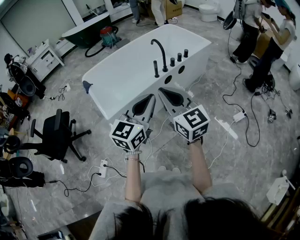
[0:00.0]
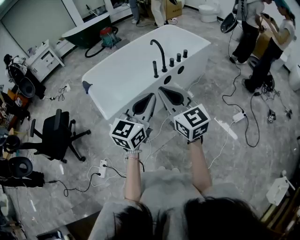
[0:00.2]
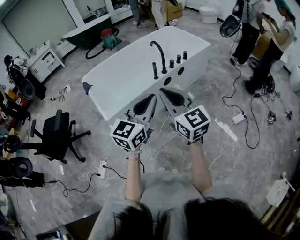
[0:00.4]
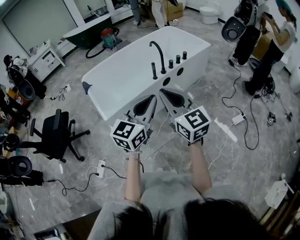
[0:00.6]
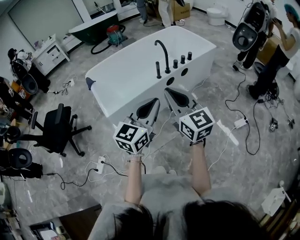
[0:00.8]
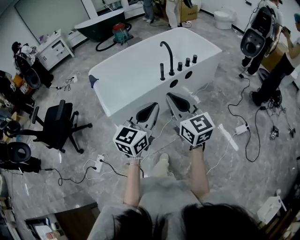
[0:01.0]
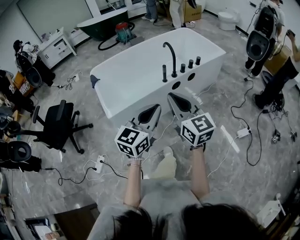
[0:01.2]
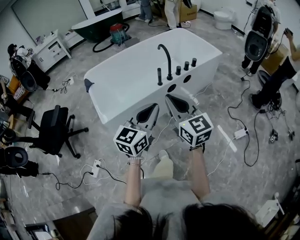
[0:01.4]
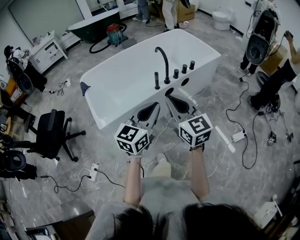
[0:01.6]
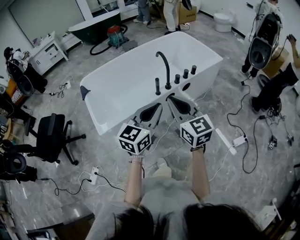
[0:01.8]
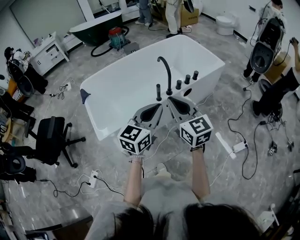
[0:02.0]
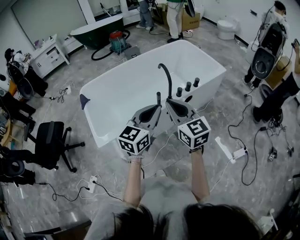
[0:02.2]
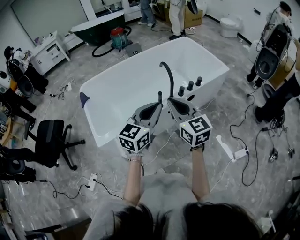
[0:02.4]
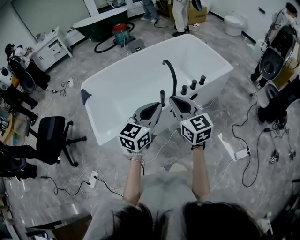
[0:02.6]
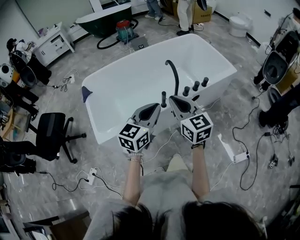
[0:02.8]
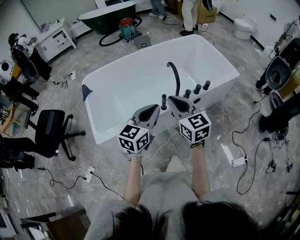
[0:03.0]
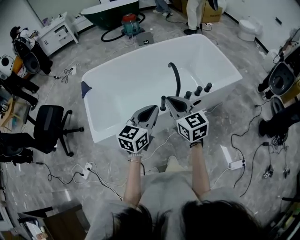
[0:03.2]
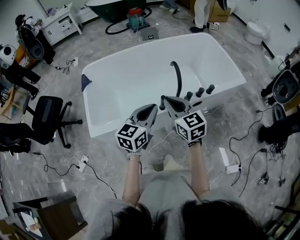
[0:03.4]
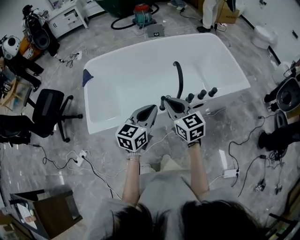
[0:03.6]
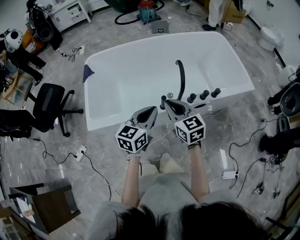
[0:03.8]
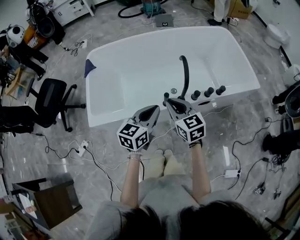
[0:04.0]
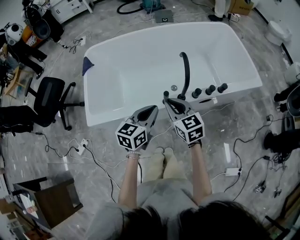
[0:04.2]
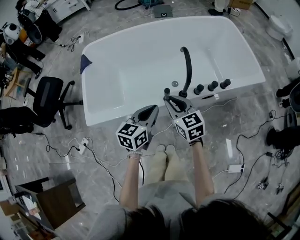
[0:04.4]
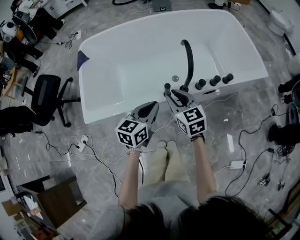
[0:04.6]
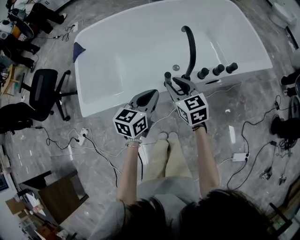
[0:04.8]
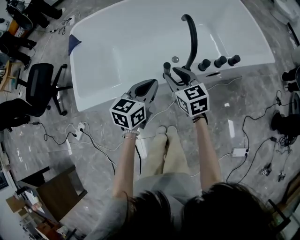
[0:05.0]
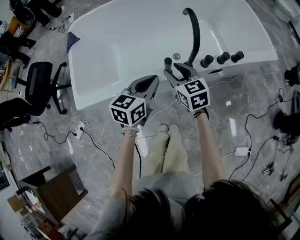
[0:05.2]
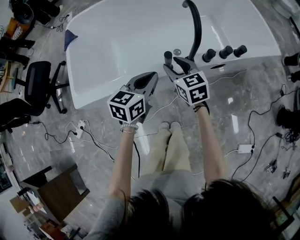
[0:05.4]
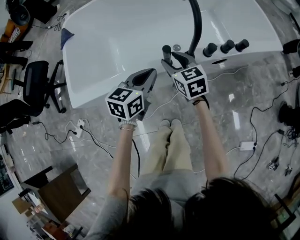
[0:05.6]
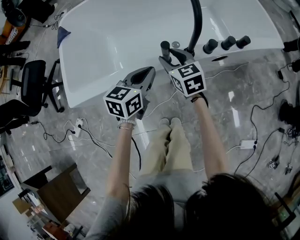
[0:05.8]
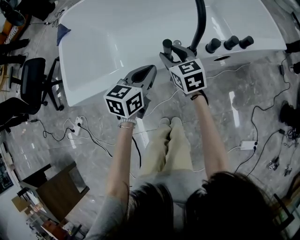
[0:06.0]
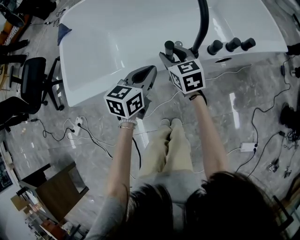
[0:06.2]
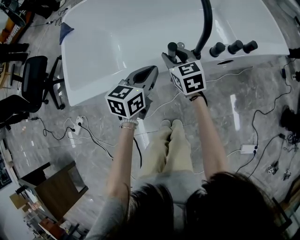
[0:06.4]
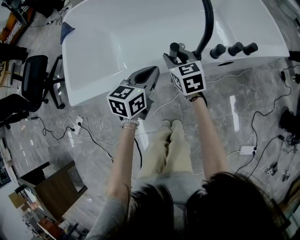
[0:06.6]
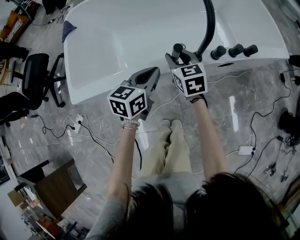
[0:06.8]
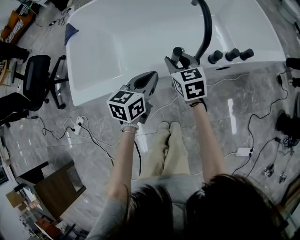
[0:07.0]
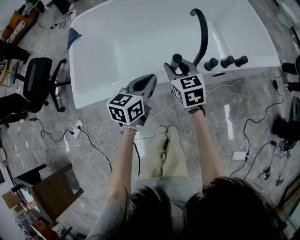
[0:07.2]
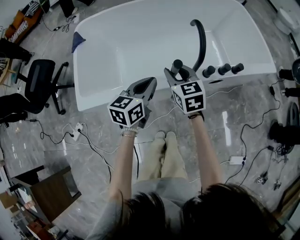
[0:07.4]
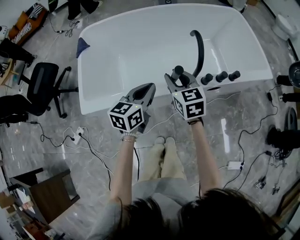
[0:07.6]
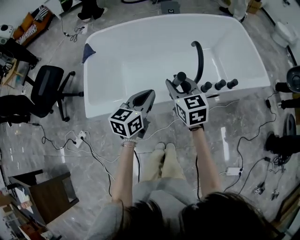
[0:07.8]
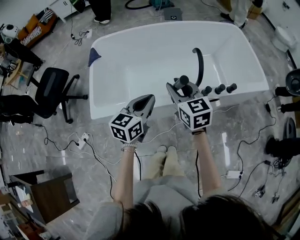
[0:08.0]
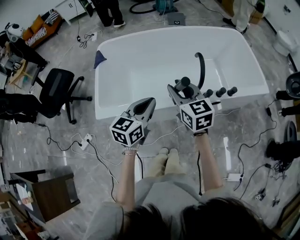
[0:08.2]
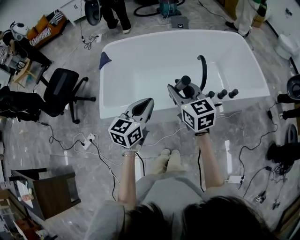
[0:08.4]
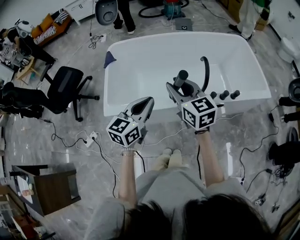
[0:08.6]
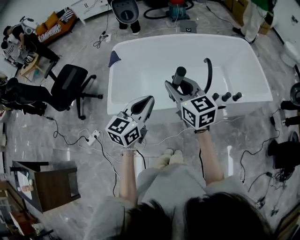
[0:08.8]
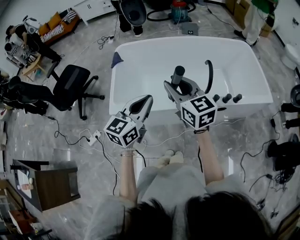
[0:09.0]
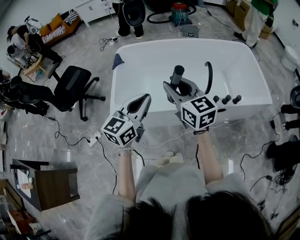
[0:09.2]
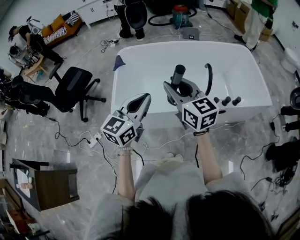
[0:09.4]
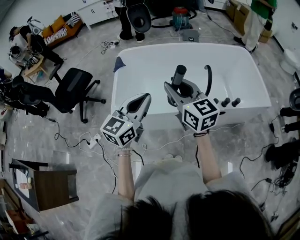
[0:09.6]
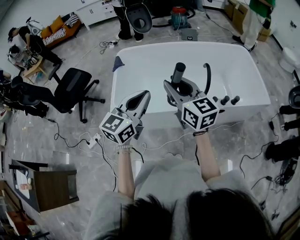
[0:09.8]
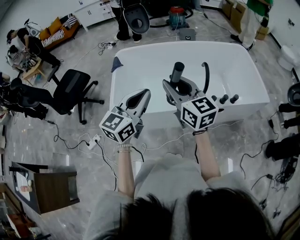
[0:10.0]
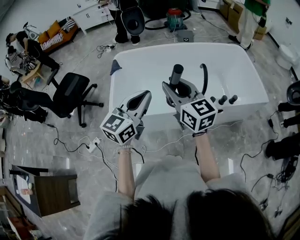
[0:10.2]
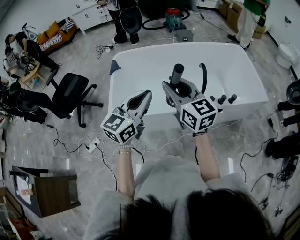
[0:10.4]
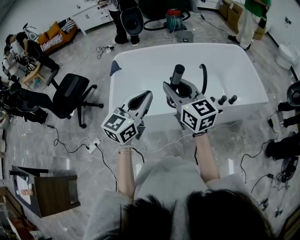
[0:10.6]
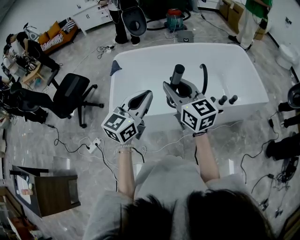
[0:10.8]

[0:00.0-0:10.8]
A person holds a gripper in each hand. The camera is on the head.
0:00.0 to 0:01.6: The left gripper travels forward and downward by roughly 15 cm, while the right gripper goes about 15 cm forward and to the right.
0:01.6 to 0:03.0: The two grippers go roughly 25 cm forward.
0:03.0 to 0:04.6: The two grippers go roughly 20 cm downward and forward. The left gripper rotates some 20 degrees; the right gripper rotates approximately 20 degrees.
0:04.6 to 0:06.2: The left gripper shifts roughly 15 cm downward. Meanwhile the right gripper moves downward and forward, some 15 cm, and opens up.
0:06.2 to 0:07.8: Both grippers travel together upward, some 20 cm.
0:07.8 to 0:09.2: The left gripper shifts about 25 cm upward, backward and to the left; the right gripper shifts roughly 25 cm upward, to the left and backward, and swivels roughly 20 degrees.
0:09.2 to 0:10.8: There are only small adjustments of the grippers.

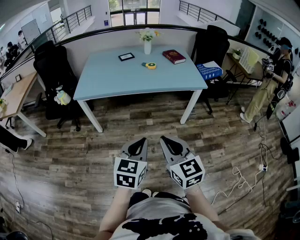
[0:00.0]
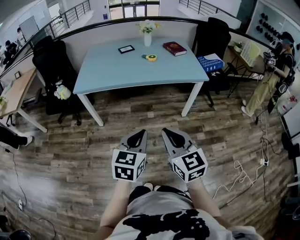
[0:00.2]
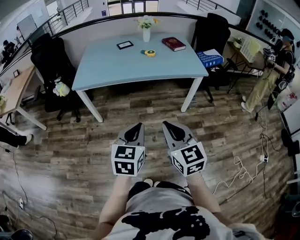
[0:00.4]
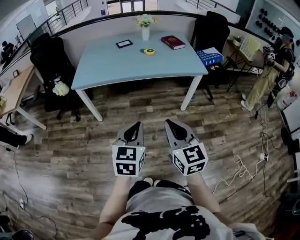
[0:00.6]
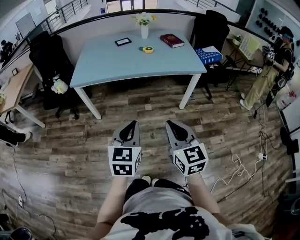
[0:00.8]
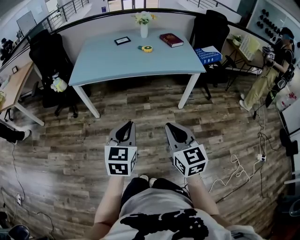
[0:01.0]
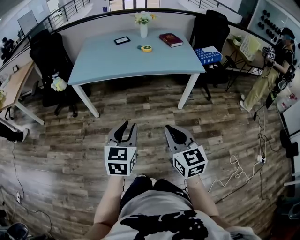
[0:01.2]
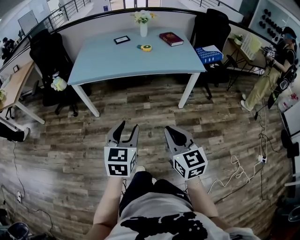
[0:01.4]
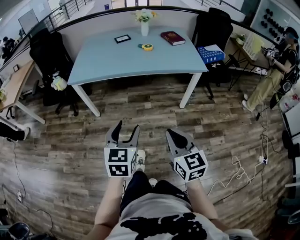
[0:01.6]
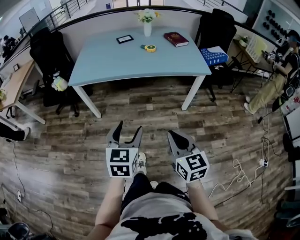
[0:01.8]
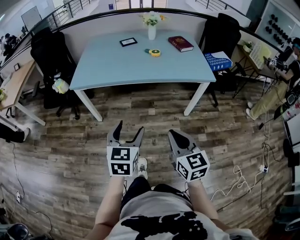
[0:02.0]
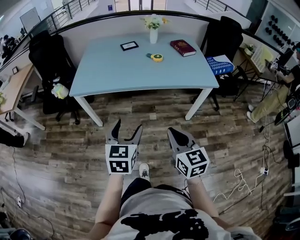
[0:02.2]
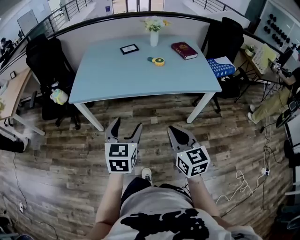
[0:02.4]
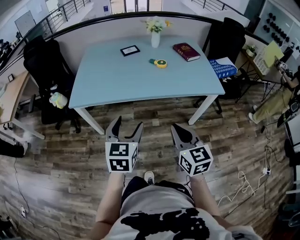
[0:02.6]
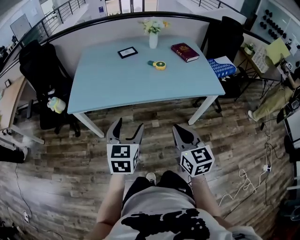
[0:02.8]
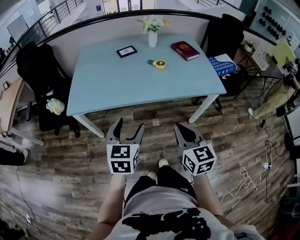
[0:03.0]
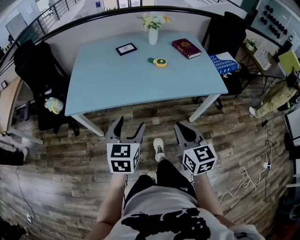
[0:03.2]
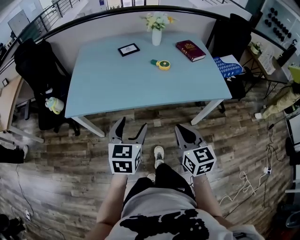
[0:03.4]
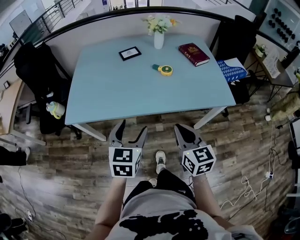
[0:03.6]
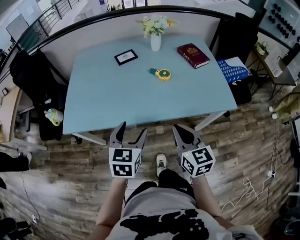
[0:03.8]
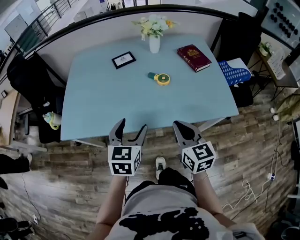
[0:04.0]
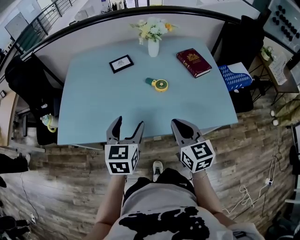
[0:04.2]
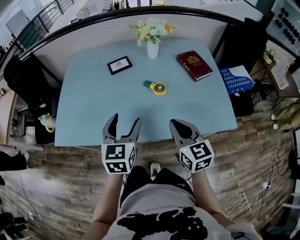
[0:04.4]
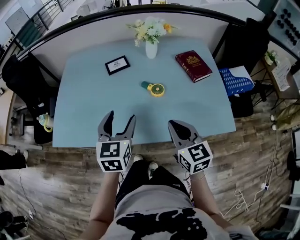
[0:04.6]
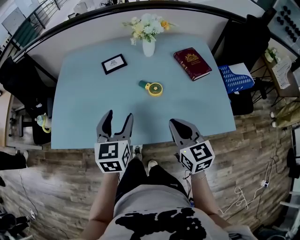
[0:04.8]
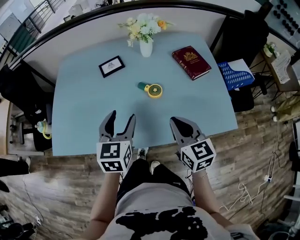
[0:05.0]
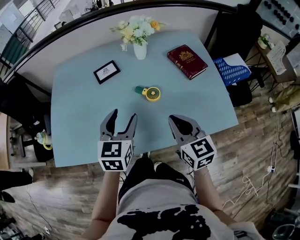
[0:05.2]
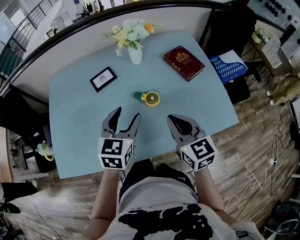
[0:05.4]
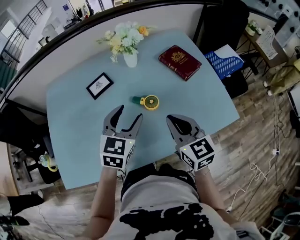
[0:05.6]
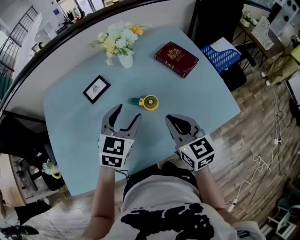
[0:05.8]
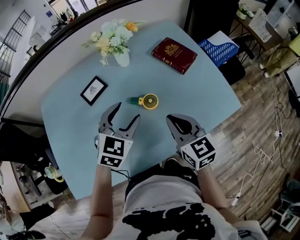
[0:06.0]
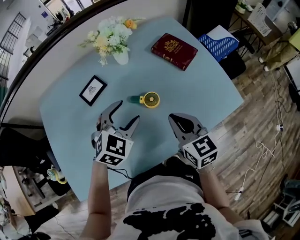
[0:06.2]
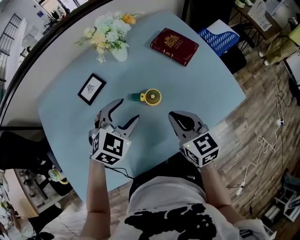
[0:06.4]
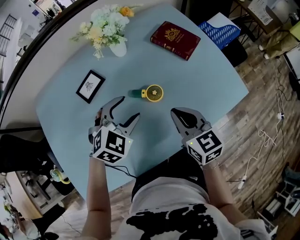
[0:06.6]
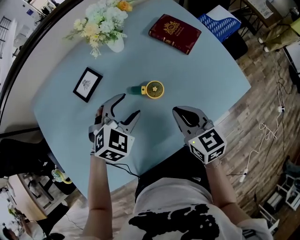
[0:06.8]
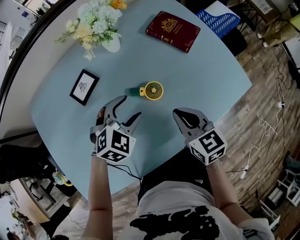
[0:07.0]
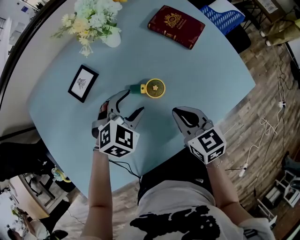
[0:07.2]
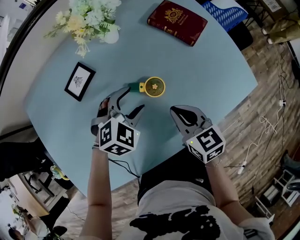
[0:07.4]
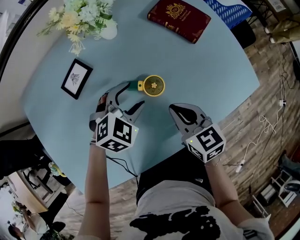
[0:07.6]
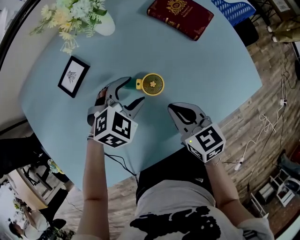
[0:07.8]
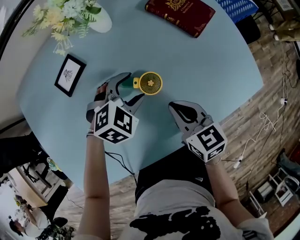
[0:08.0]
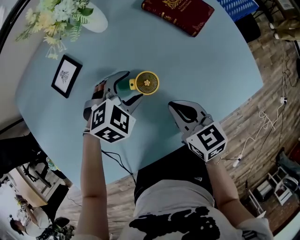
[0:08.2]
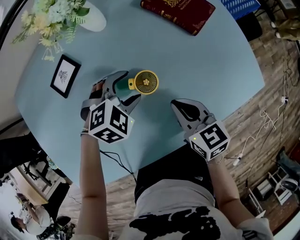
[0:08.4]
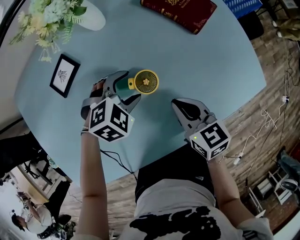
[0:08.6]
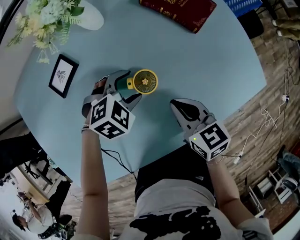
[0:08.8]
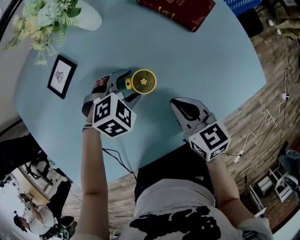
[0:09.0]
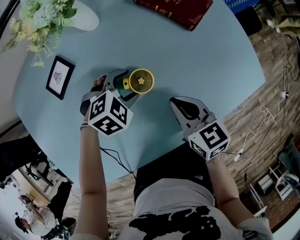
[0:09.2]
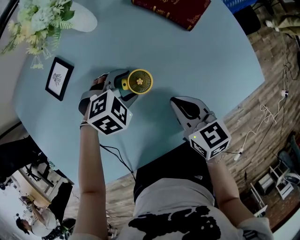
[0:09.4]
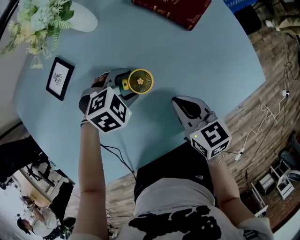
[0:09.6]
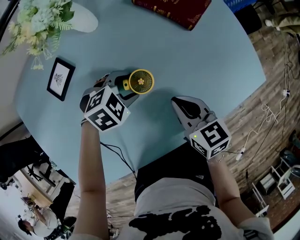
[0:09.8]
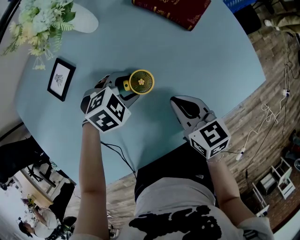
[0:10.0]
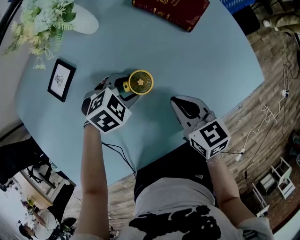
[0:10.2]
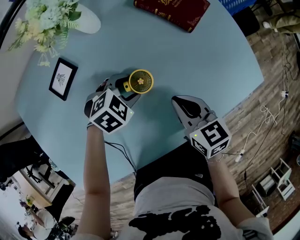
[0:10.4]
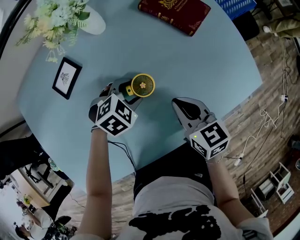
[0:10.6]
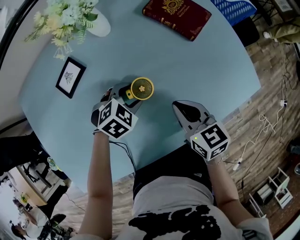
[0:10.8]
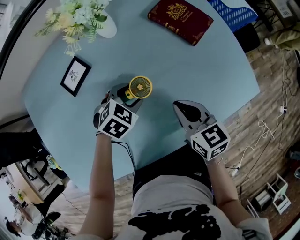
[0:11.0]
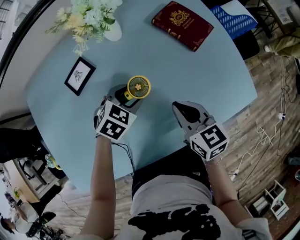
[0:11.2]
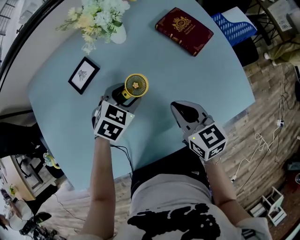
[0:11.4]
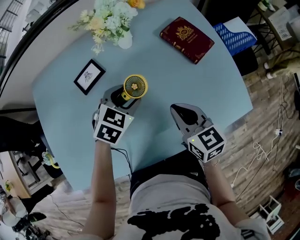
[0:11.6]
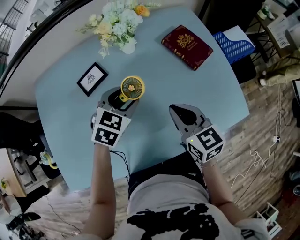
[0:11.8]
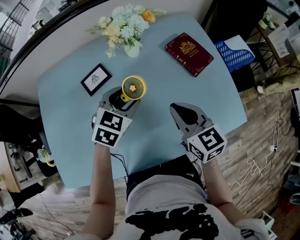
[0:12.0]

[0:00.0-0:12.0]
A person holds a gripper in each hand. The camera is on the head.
0:00.0 to 0:01.6: The left gripper opens its fingers, while the right gripper is displaced to the right and downward by some 10 cm.
0:01.6 to 0:03.0: The grippers both shift forward by about 30 cm.
0:03.0 to 0:04.4: Both grippers travel together forward, some 30 cm.
0:04.4 to 0:06.0: The right gripper ends up about 10 cm from where it was. Meanwhile the left gripper ends up some 20 cm from where it was, and changes its angle by roughly 50 degrees.
0:06.0 to 0:07.6: The two grippers go some 10 cm downward. The left gripper turns by some 30 degrees.
0:07.6 to 0:09.0: The left gripper heads downward, covering approximately 5 cm.
0:09.0 to 0:10.4: The grippers move only a little.
0:10.4 to 0:12.0: The two grippers go roughly 15 cm upward. The left gripper rotates roughly 40 degrees. Meanwhile the right gripper turns by about 20 degrees.

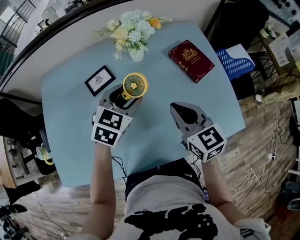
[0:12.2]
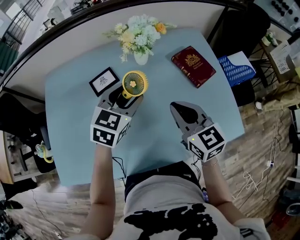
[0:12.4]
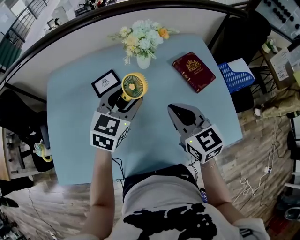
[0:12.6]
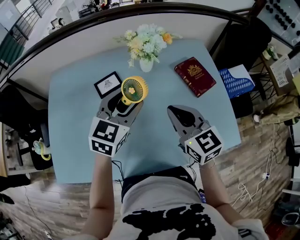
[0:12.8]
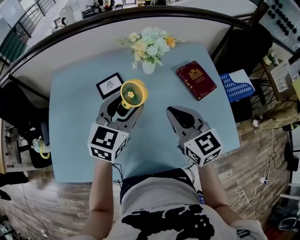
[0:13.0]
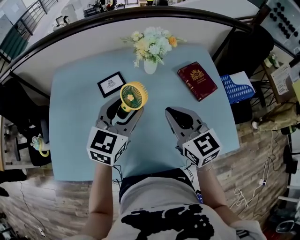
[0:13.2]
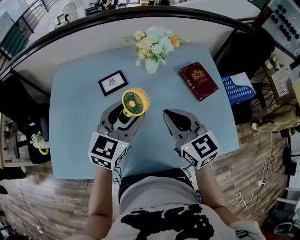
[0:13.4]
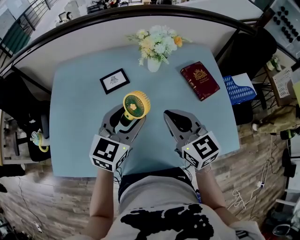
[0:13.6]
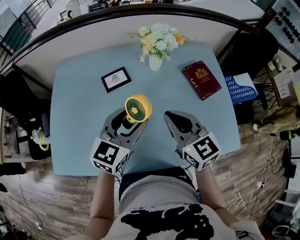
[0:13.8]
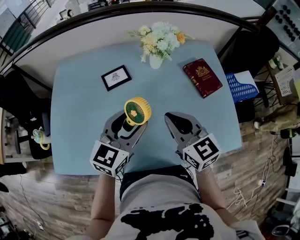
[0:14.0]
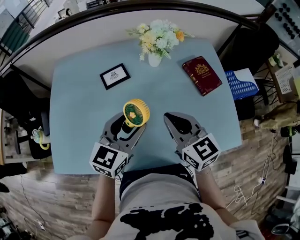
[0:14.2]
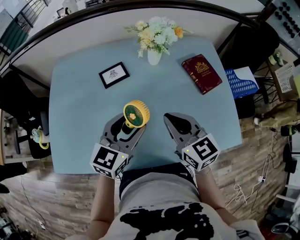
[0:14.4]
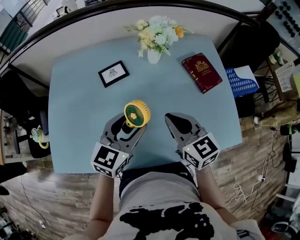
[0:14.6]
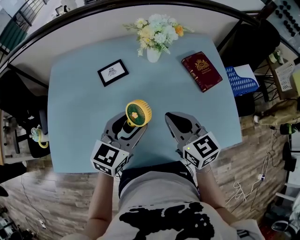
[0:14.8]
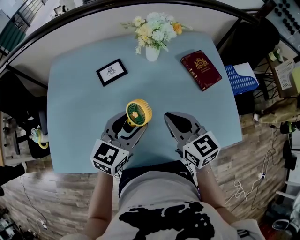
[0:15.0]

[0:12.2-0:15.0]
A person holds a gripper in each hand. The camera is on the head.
0:12.2 to 0:13.6: The left gripper moves backward and upward, some 10 cm, and rotates some 20 degrees. The right gripper is displaced to the left and upward by about 10 cm.
0:13.6 to 0:15.0: Both grippers move downward, about 5 cm.
